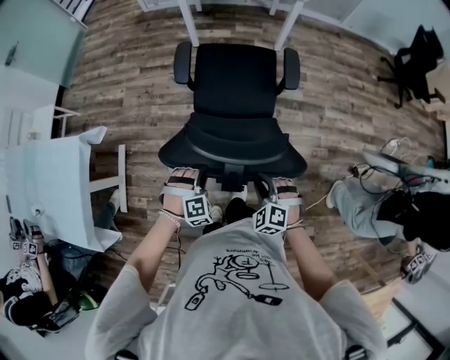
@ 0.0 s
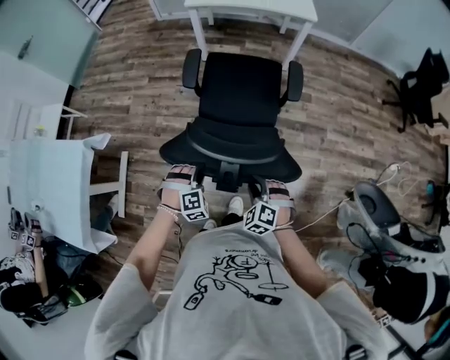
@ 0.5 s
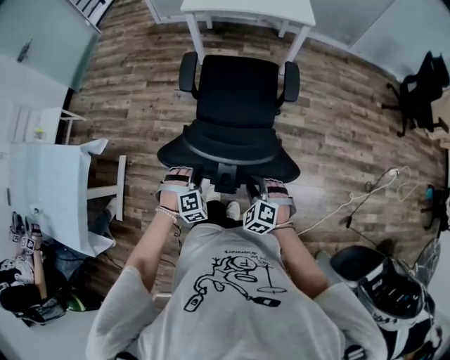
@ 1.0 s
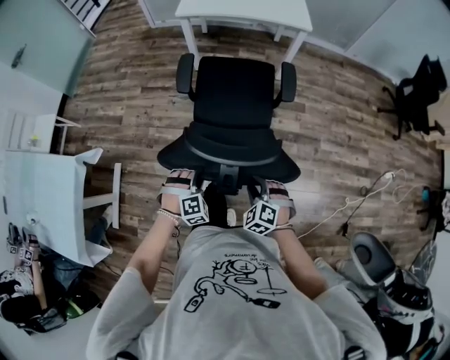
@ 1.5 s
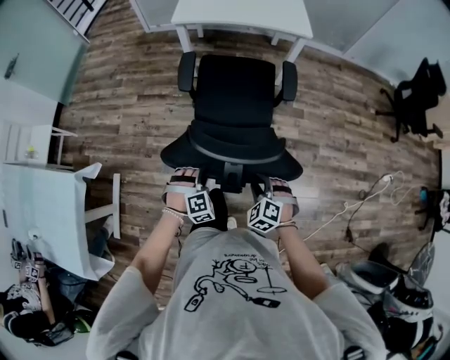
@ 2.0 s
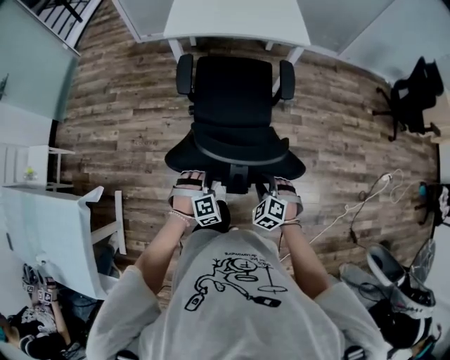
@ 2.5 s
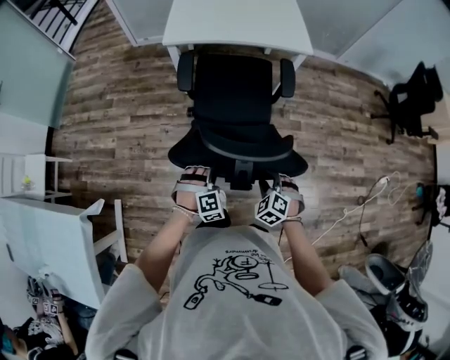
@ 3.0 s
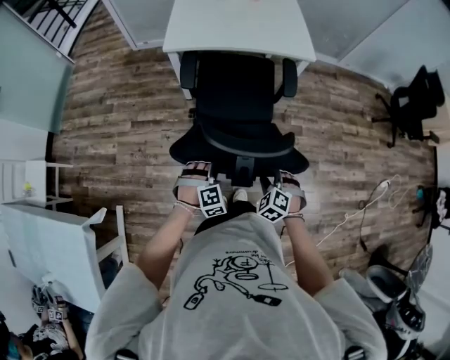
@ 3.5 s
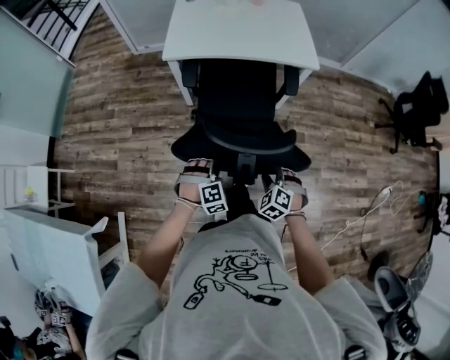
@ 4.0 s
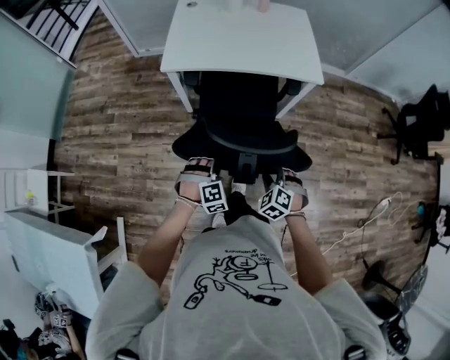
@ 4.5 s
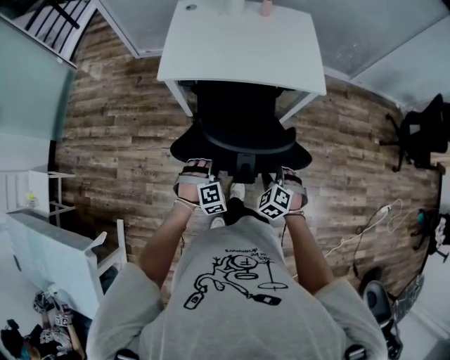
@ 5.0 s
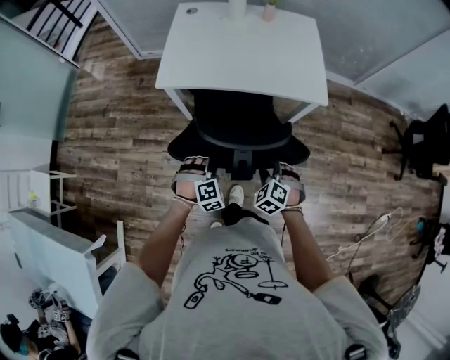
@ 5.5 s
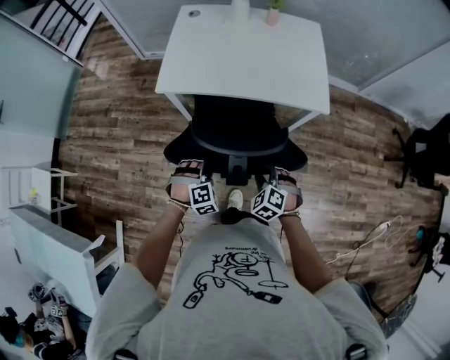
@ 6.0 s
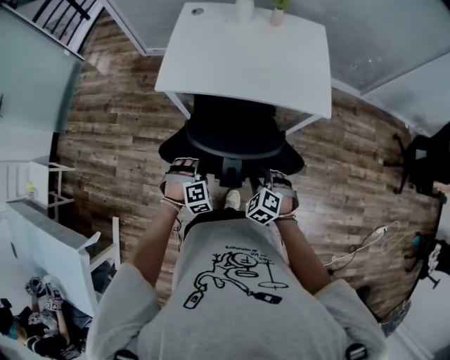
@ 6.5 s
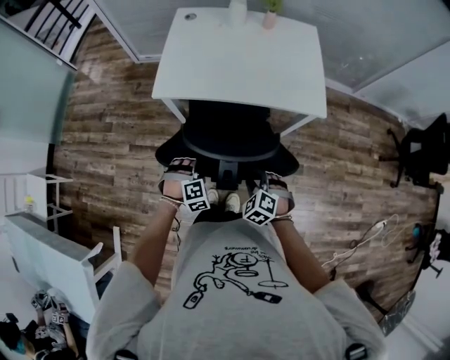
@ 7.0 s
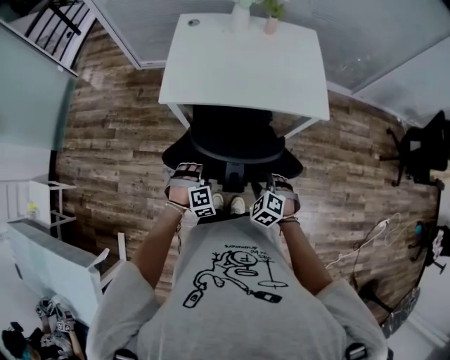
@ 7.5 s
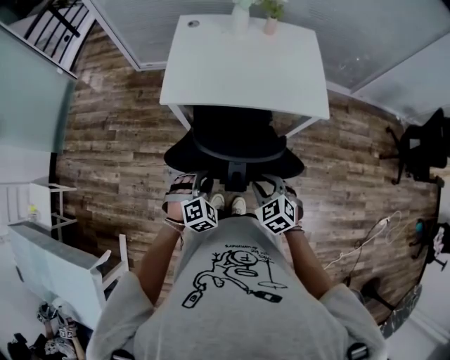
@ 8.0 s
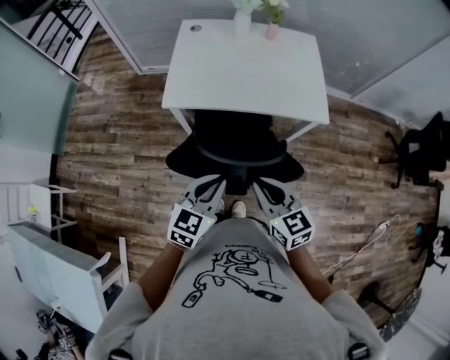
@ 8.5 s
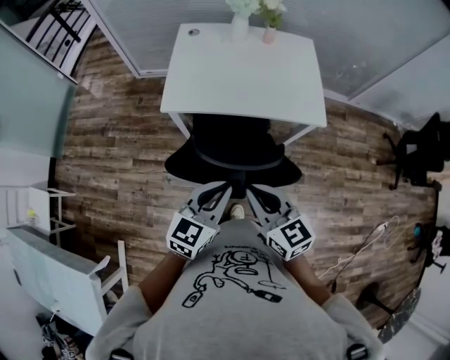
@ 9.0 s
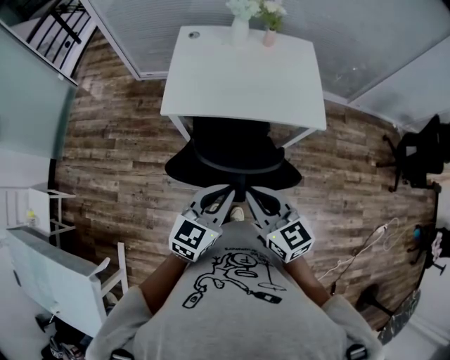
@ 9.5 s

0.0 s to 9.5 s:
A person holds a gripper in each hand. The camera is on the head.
0.0 to 2.0 s: Both grippers move forward, approximately 20 cm.
2.0 to 4.0 s: Both grippers travel together forward, approximately 30 cm.
4.0 to 5.5 s: Both grippers travel together forward, roughly 20 cm.
5.5 to 7.5 s: The left gripper ends up some 5 cm from where it was. The right gripper ends up about 5 cm from where it was.
7.5 to 9.5 s: The grippers both shift upward by approximately 25 cm. The left gripper points its fingers some 40 degrees further upward, and closes up; the right gripper tips its fingers upward by about 40 degrees, and closes.

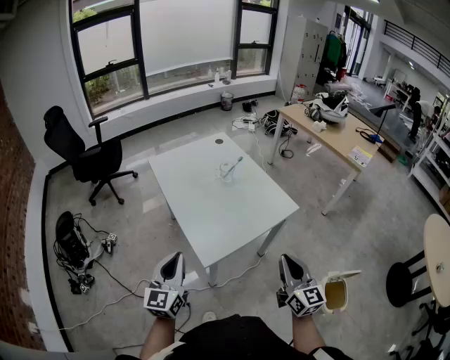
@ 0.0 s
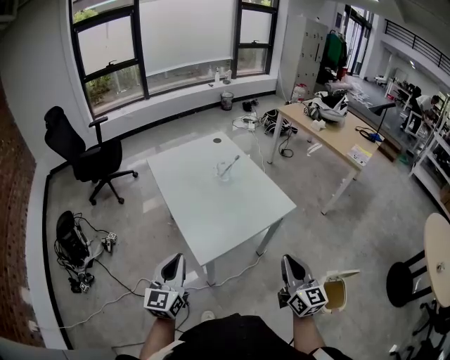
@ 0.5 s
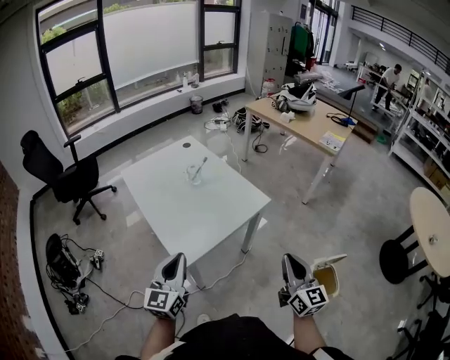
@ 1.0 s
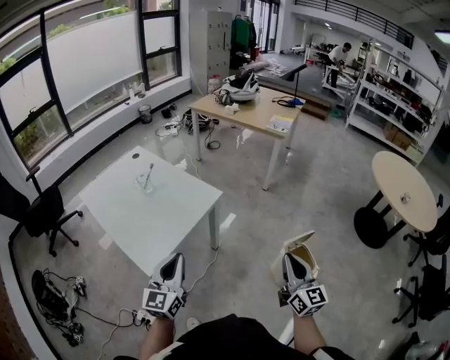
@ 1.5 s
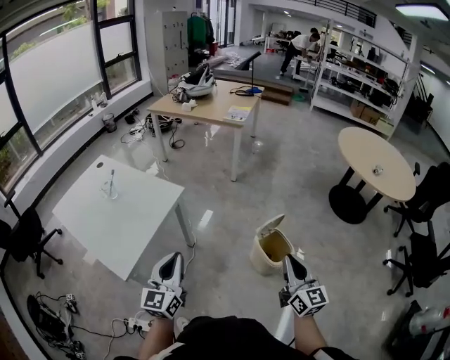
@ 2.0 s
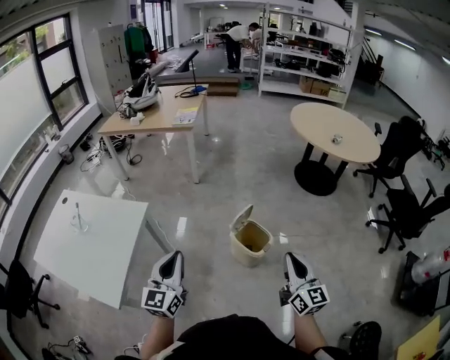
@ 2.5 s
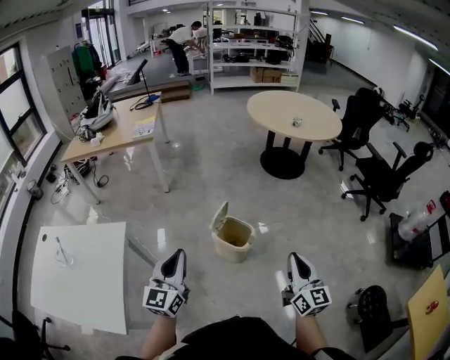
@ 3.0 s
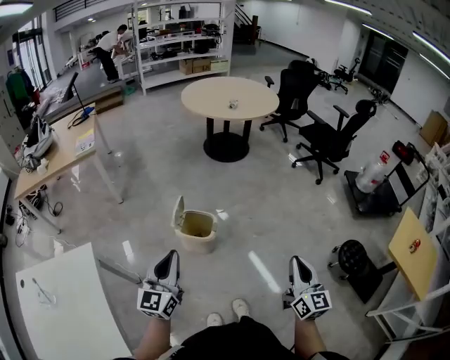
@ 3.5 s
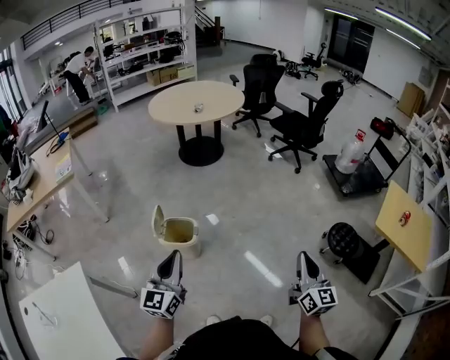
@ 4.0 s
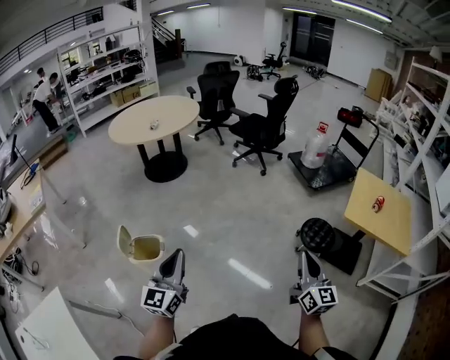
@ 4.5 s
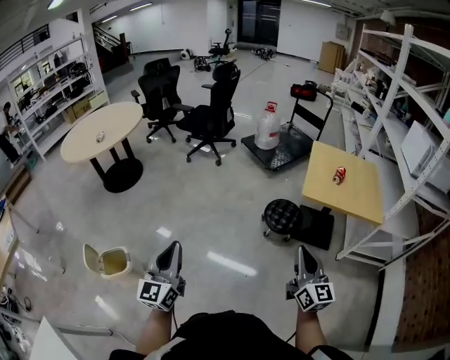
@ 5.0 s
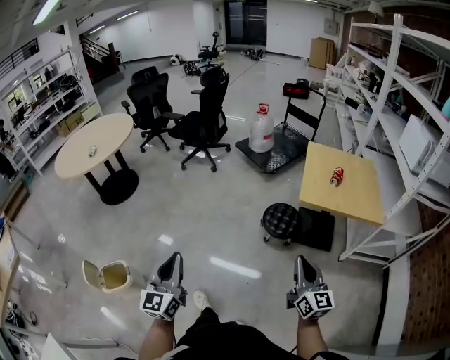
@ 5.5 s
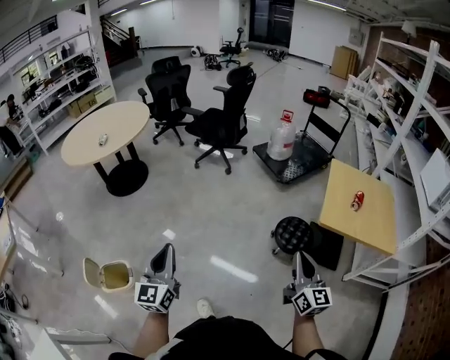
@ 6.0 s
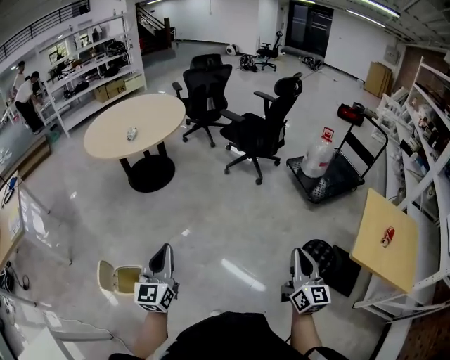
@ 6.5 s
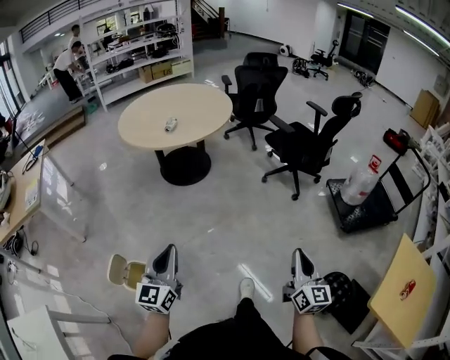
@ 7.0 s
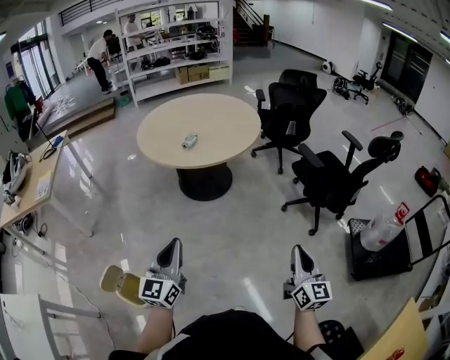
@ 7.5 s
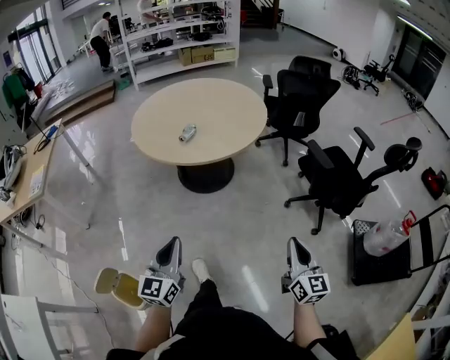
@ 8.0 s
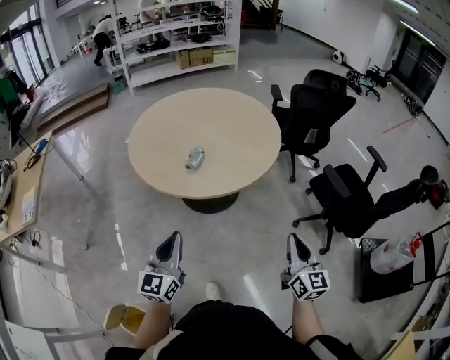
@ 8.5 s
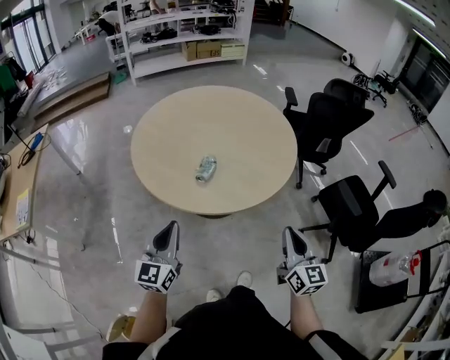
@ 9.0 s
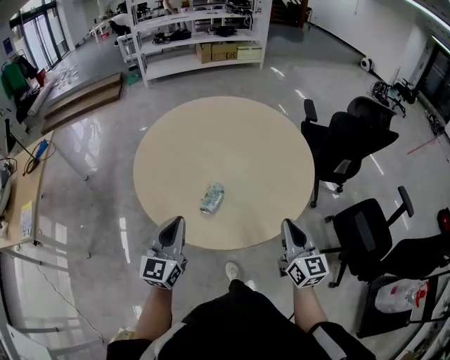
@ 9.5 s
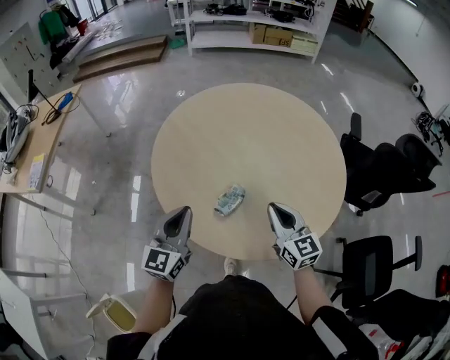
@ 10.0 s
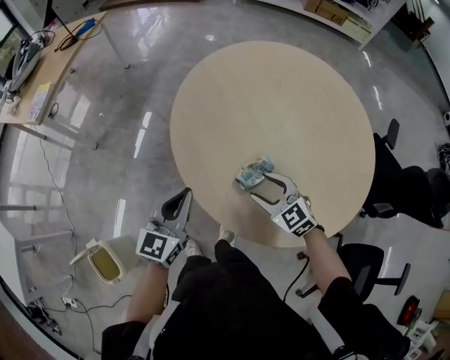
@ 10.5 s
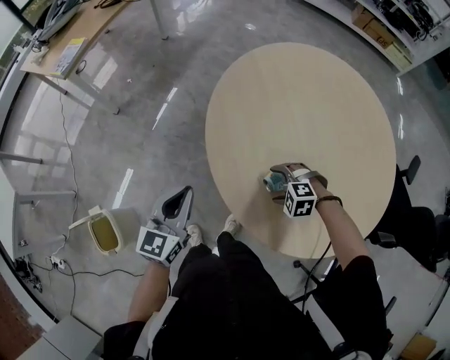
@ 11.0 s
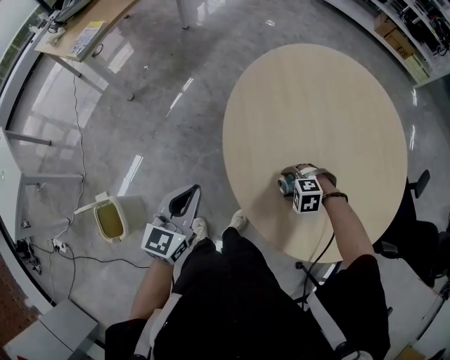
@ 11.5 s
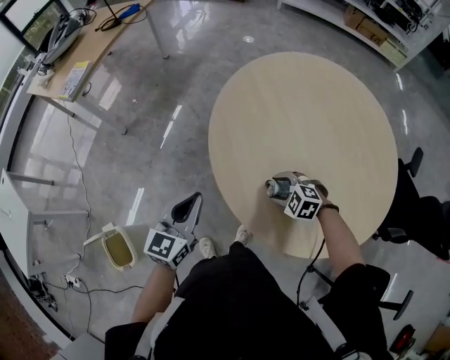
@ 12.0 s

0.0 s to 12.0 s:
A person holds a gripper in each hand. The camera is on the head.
0.0 to 2.0 s: The left gripper changes place by roughly 35 cm, and turns by roughly 40 degrees; the right gripper changes place by some 40 cm, and swivels about 40 degrees.
2.0 to 4.0 s: The right gripper changes place by about 40 cm, and swivels about 70 degrees, while the left gripper moves about 25 cm, and rotates about 60 degrees.
4.0 to 6.0 s: The left gripper changes place by approximately 40 cm. Meanwhile the right gripper moves approximately 35 cm, and rotates some 20 degrees.
6.0 to 8.0 s: The pair of grippers is taken roughly 60 cm. The left gripper rotates approximately 30 degrees. Meanwhile the right gripper swivels about 40 degrees.
8.0 to 10.0 s: The two grippers travel together, roughly 60 cm. The right gripper rotates approximately 40 degrees.
10.0 to 12.0 s: The right gripper travels downward by approximately 20 cm, tips its fingers downward by some 50 degrees, and opens up; the left gripper shifts by roughly 15 cm, and swivels approximately 20 degrees.

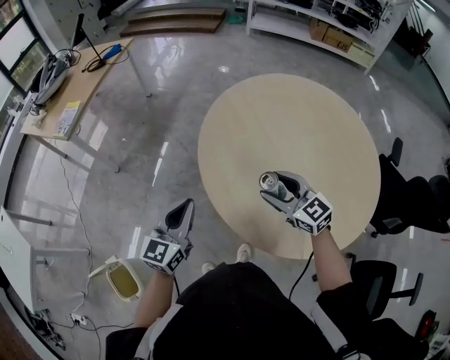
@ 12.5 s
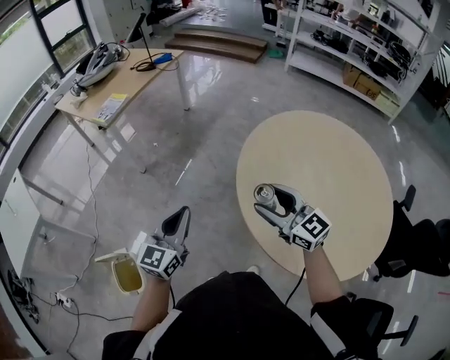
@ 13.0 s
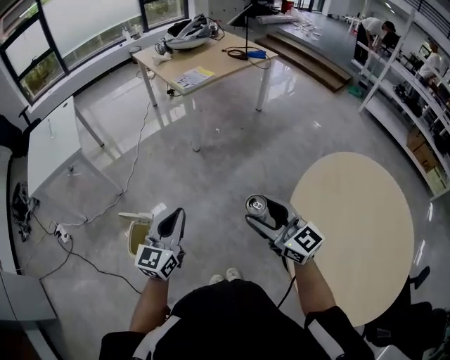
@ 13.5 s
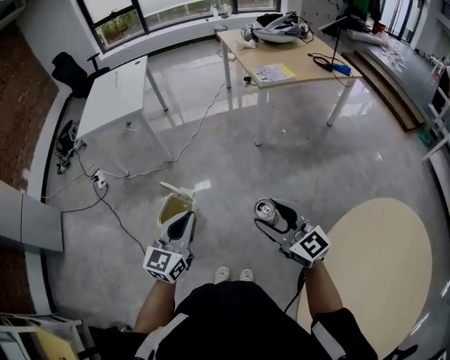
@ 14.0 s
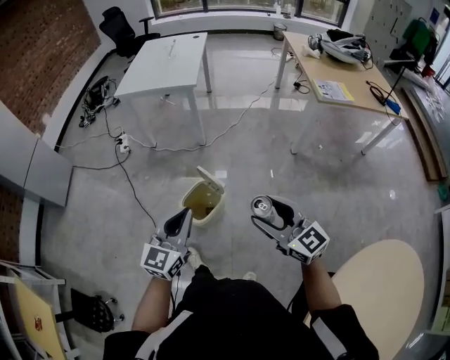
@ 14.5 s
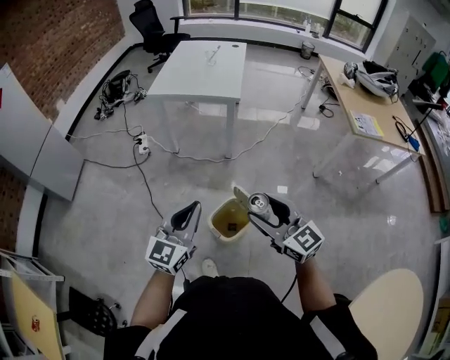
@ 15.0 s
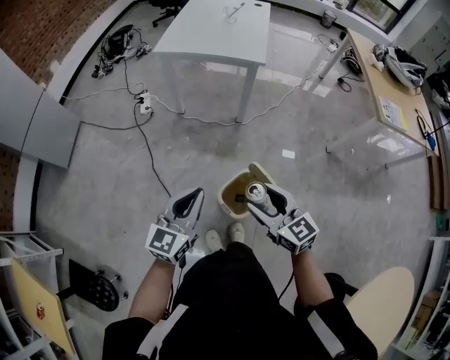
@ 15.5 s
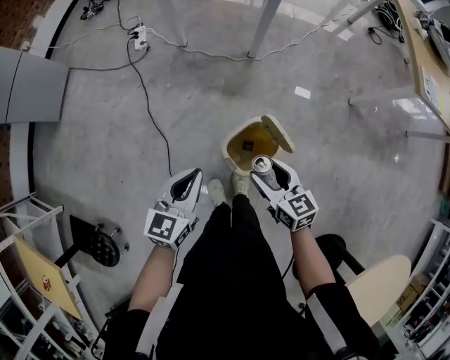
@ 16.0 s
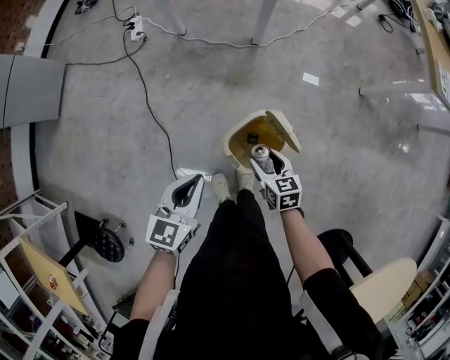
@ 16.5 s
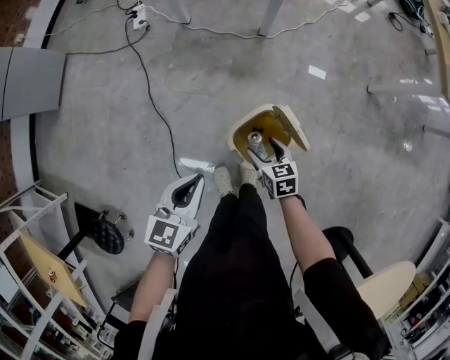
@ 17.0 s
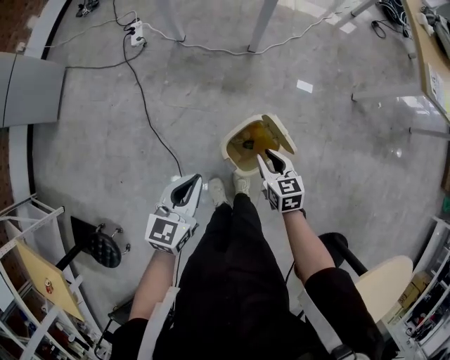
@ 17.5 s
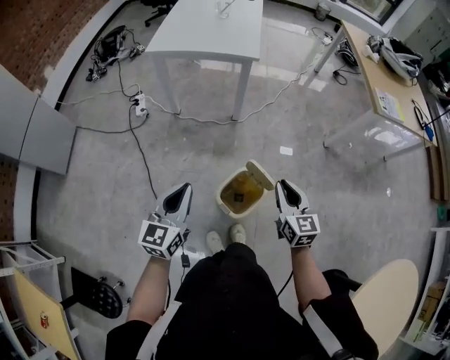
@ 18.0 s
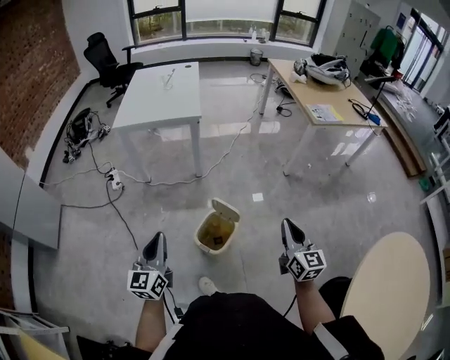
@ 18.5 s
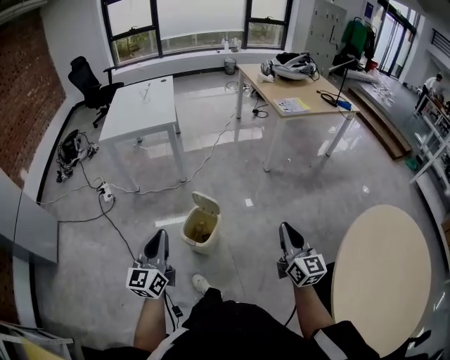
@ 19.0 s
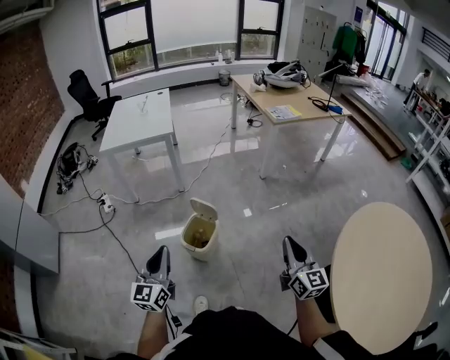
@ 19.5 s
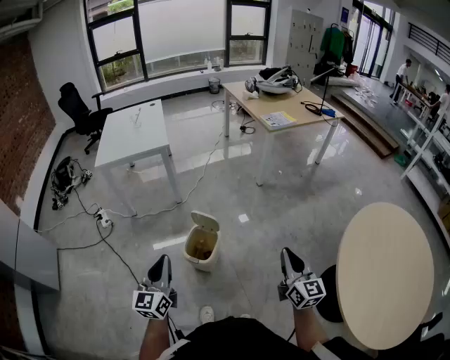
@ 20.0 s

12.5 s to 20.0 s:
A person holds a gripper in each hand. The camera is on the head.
12.5 to 14.5 s: Both grippers are carried roughly 60 cm. The right gripper turns by some 80 degrees; the left gripper changes its angle by about 80 degrees.
14.5 to 16.5 s: The right gripper is displaced downward, forward and to the left by some 50 cm, and points its fingers approximately 40 degrees further downward; the left gripper is displaced downward, to the left and forward by approximately 35 cm, and changes its angle by approximately 30 degrees.
16.5 to 18.0 s: The left gripper shifts some 15 cm upward; the right gripper goes approximately 25 cm upward, changes its angle by some 30 degrees, and closes up.
18.0 to 20.0 s: The right gripper moves backward, to the right and upward, some 40 cm, and changes its angle by about 30 degrees. The left gripper shifts approximately 20 cm backward, upward and to the right.
